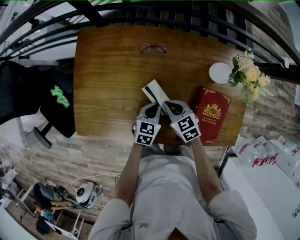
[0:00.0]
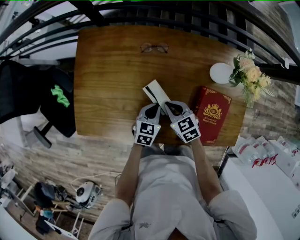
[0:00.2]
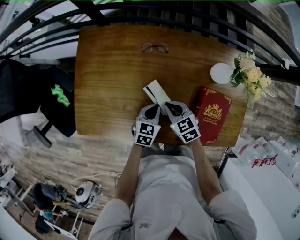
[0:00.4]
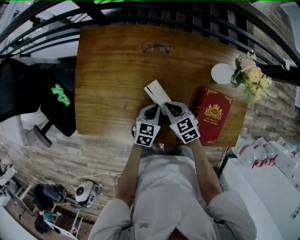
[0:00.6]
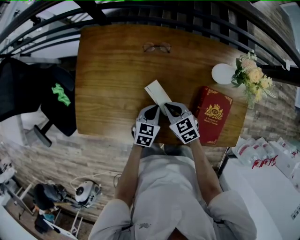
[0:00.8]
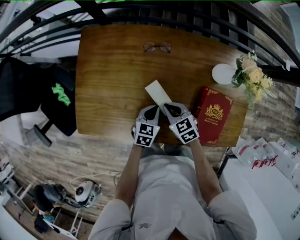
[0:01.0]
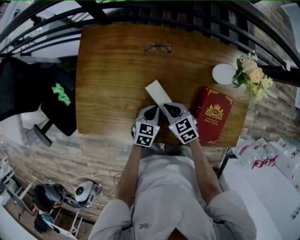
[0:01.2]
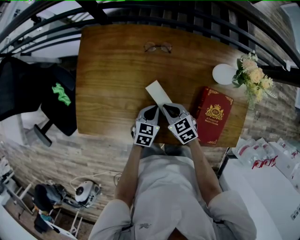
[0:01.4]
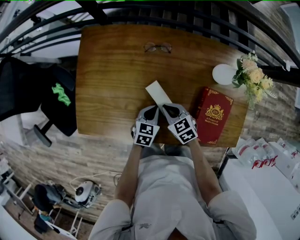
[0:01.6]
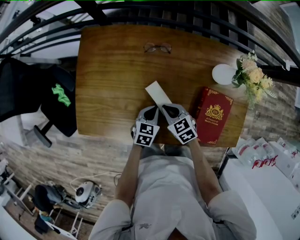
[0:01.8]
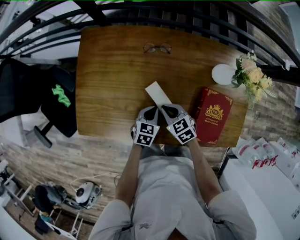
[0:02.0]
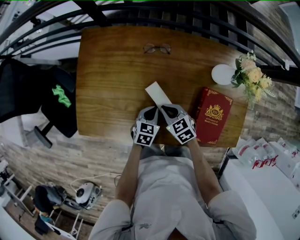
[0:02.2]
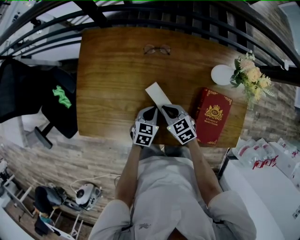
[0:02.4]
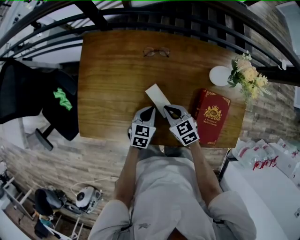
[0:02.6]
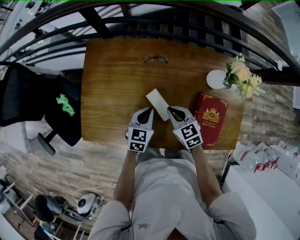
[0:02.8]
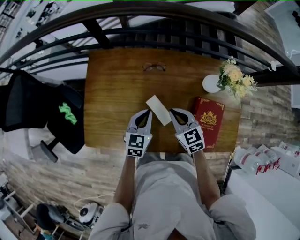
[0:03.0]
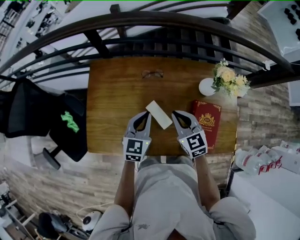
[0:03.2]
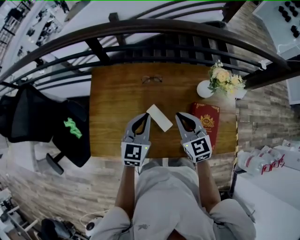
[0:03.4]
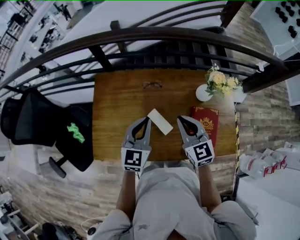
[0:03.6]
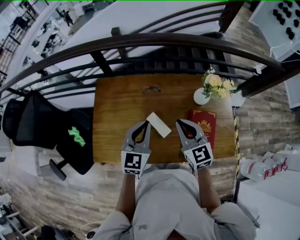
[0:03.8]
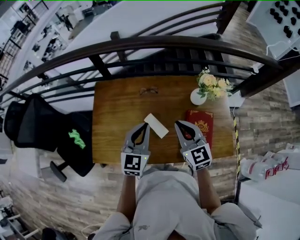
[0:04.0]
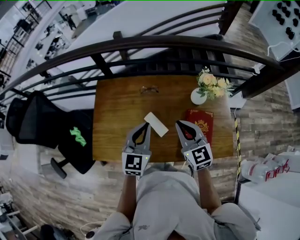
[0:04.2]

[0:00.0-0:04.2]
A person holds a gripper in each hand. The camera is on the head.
0:00.0 to 0:01.4: The grippers make only small movements.
0:01.4 to 0:02.8: Both grippers move upward, roughly 5 cm.
0:02.8 to 0:04.2: The grippers both shift upward by roughly 20 cm. The right gripper changes its angle by about 30 degrees. The left gripper rotates approximately 30 degrees.

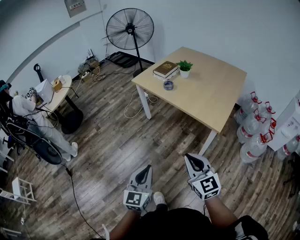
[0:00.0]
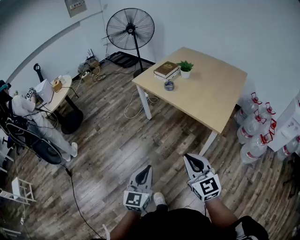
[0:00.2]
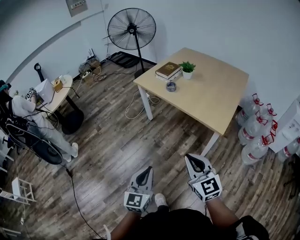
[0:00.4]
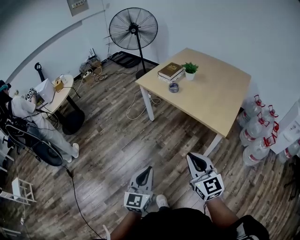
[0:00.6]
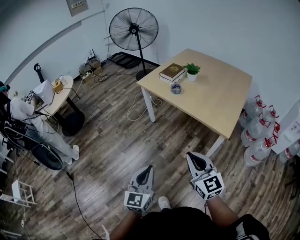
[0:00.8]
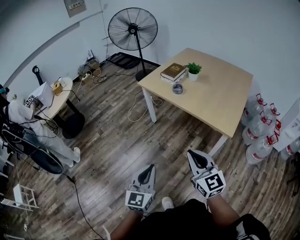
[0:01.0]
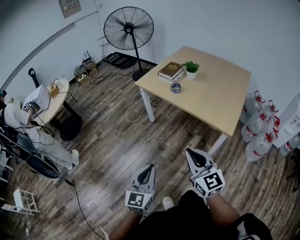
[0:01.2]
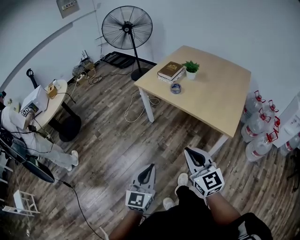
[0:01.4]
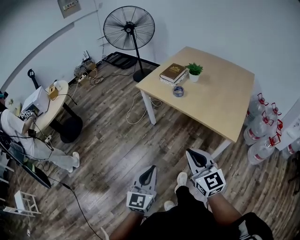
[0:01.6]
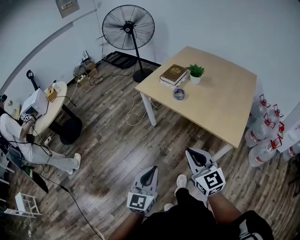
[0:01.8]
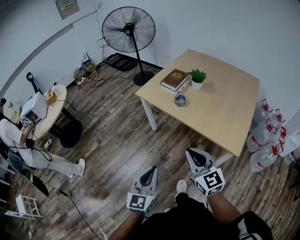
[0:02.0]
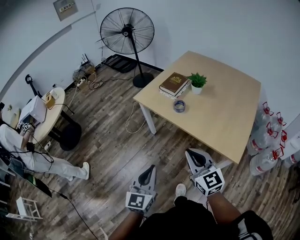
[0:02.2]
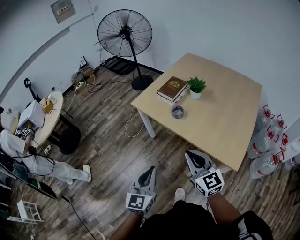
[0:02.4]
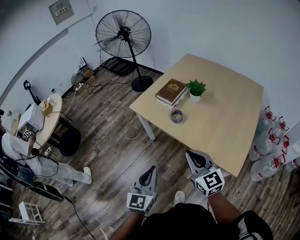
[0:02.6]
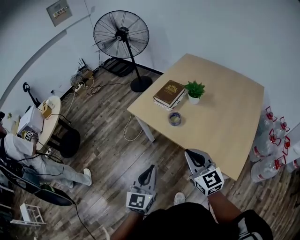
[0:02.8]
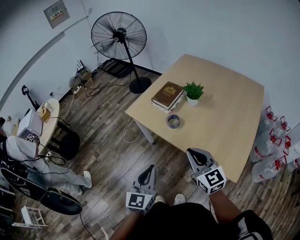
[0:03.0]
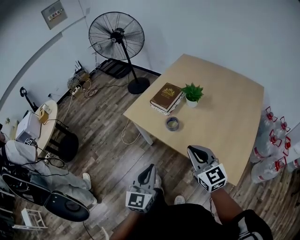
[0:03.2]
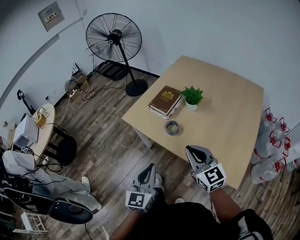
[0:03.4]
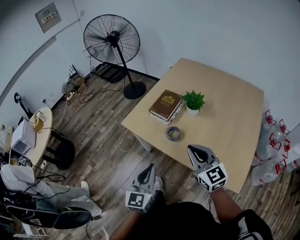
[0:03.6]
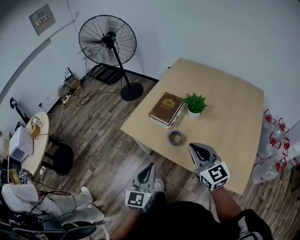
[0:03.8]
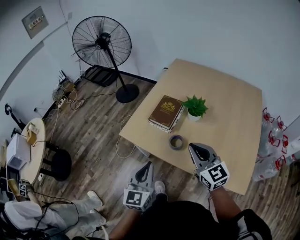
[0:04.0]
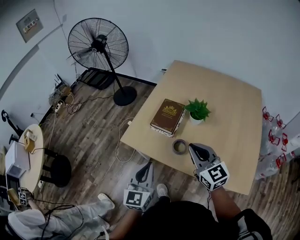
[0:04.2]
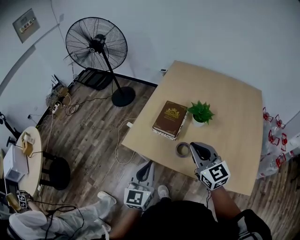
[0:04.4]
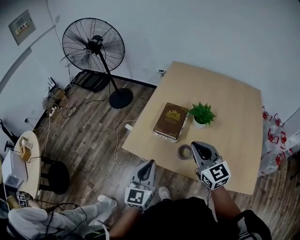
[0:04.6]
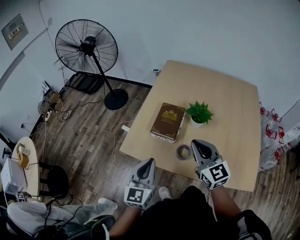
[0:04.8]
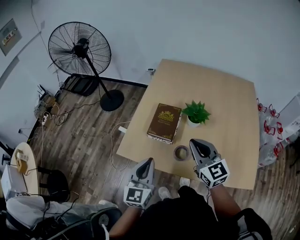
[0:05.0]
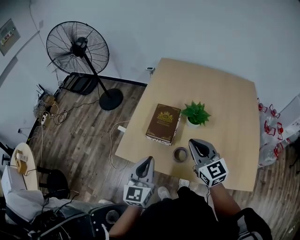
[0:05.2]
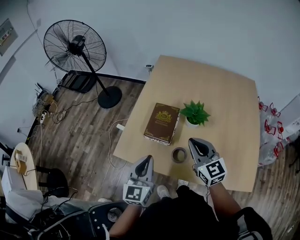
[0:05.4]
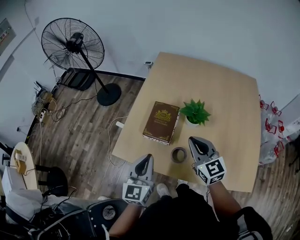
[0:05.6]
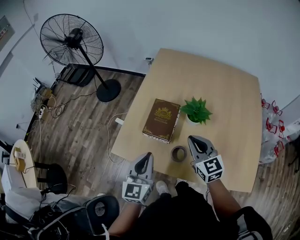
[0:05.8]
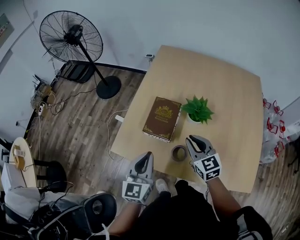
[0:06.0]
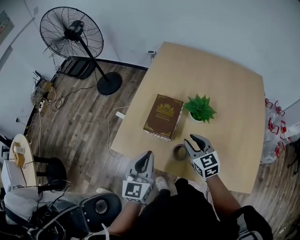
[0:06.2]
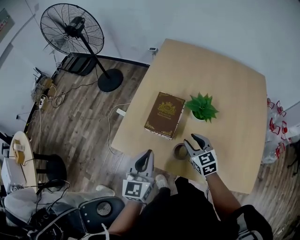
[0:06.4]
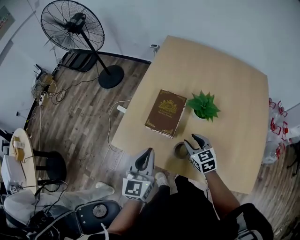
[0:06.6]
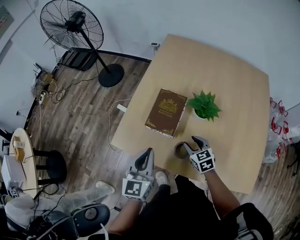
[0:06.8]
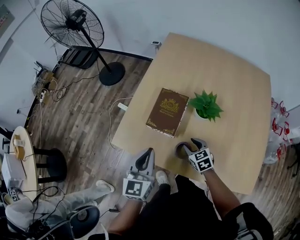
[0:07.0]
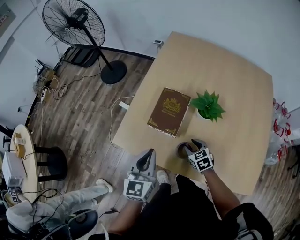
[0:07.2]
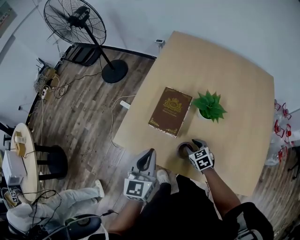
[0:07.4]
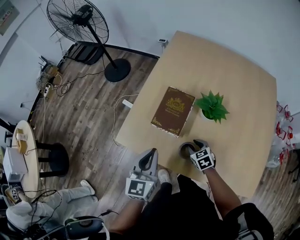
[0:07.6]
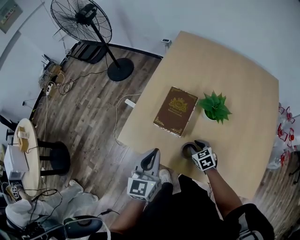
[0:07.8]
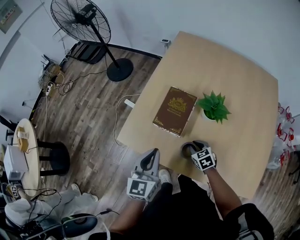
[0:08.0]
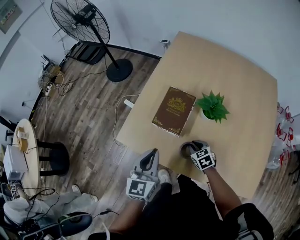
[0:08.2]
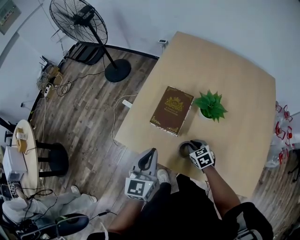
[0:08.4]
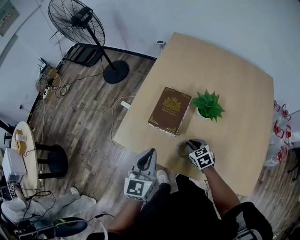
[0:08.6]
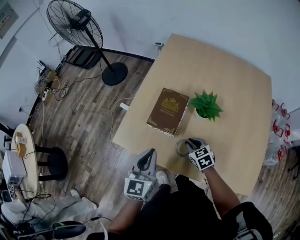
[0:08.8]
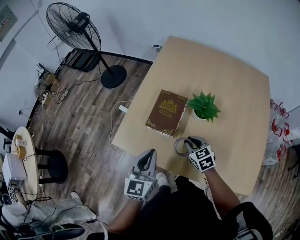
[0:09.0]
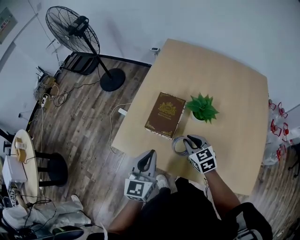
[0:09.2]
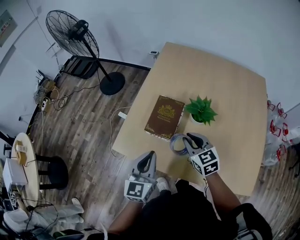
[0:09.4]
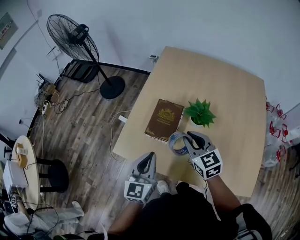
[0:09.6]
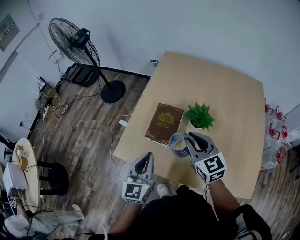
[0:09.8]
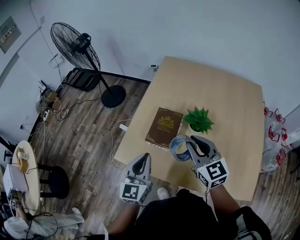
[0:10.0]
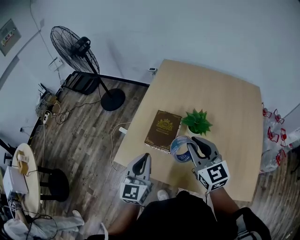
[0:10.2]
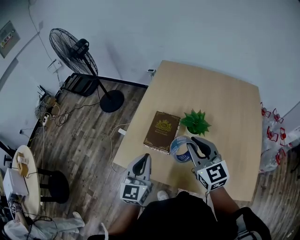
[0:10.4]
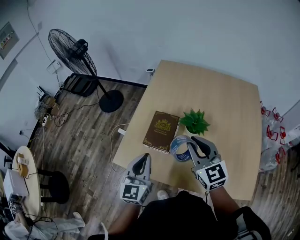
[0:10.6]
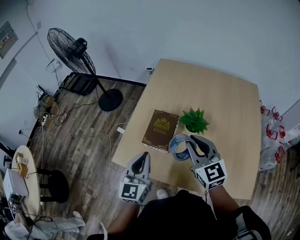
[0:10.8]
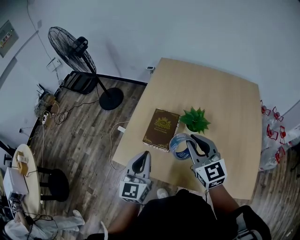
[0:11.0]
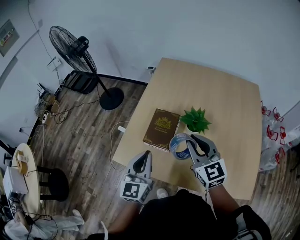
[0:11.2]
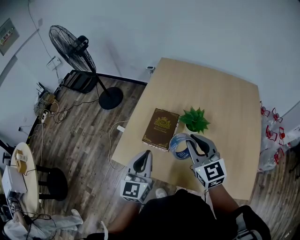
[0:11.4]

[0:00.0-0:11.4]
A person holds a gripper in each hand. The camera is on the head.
0:00.0 to 0:01.4: The grippers both shift forward and to the left by roughly 15 cm.
0:01.4 to 0:02.8: The grippers both shift forward by about 30 cm.
0:02.8 to 0:04.2: Both grippers move forward, some 25 cm.
0:04.2 to 0:05.6: The two grippers go roughly 15 cm forward.
0:05.6 to 0:07.2: The right gripper moves downward, approximately 25 cm, tips its fingers downward by some 40 degrees, and opens up.
0:07.2 to 0:08.6: The right gripper closes up.
0:08.6 to 0:10.0: The right gripper moves upward, about 30 cm, and points its fingers about 40 degrees further upward. The left gripper shifts approximately 5 cm upward.
0:10.0 to 0:11.4: The grippers make only small movements.

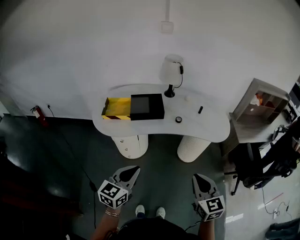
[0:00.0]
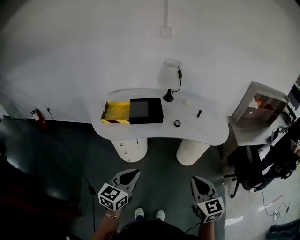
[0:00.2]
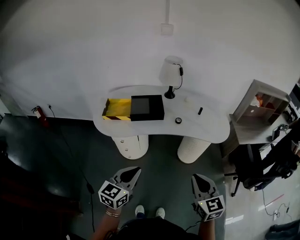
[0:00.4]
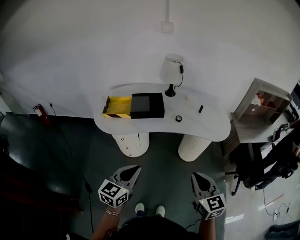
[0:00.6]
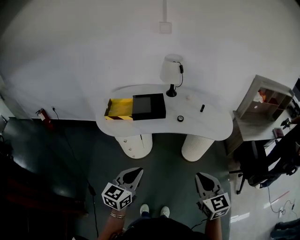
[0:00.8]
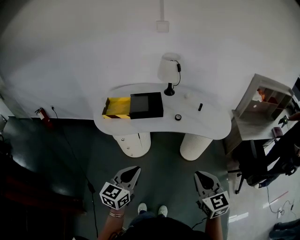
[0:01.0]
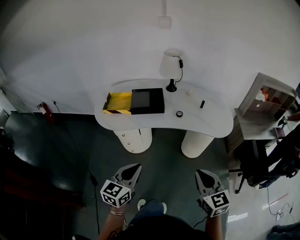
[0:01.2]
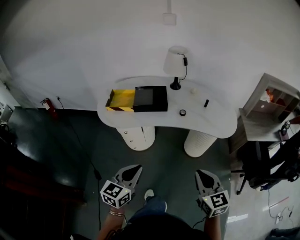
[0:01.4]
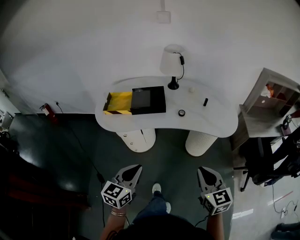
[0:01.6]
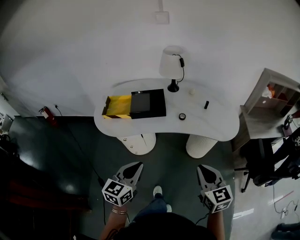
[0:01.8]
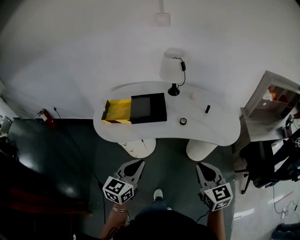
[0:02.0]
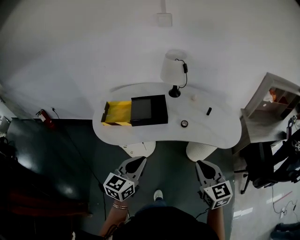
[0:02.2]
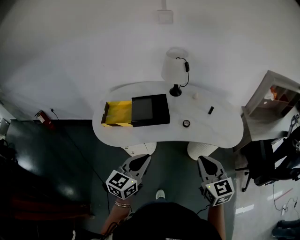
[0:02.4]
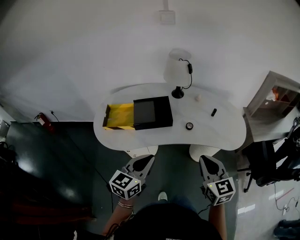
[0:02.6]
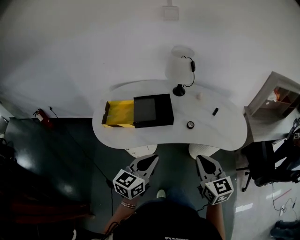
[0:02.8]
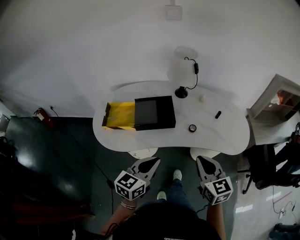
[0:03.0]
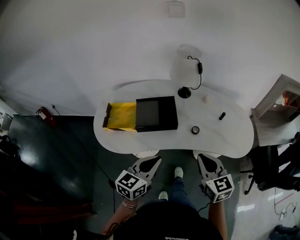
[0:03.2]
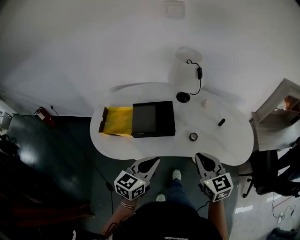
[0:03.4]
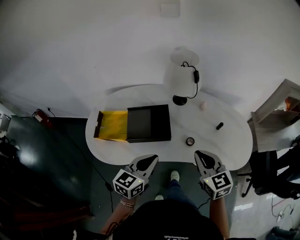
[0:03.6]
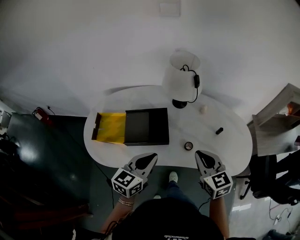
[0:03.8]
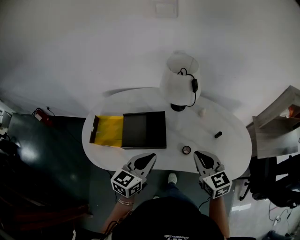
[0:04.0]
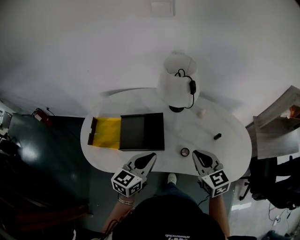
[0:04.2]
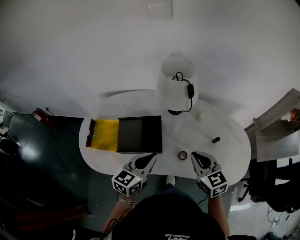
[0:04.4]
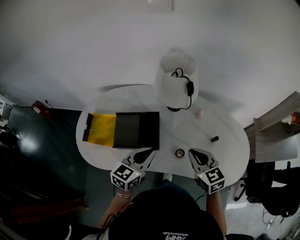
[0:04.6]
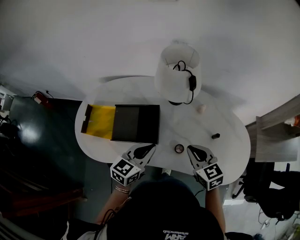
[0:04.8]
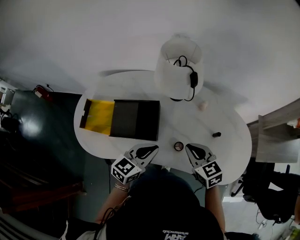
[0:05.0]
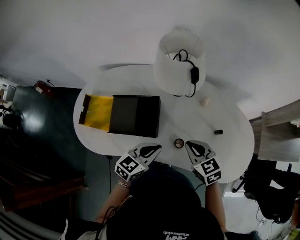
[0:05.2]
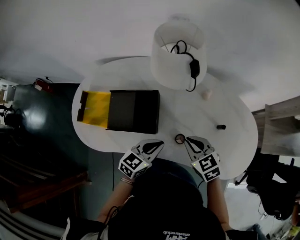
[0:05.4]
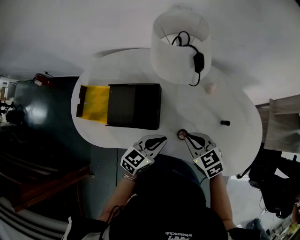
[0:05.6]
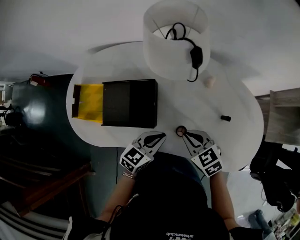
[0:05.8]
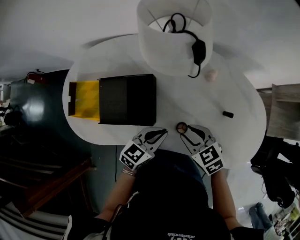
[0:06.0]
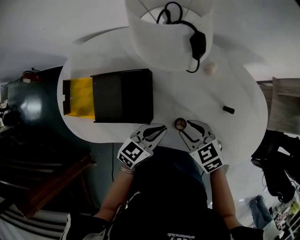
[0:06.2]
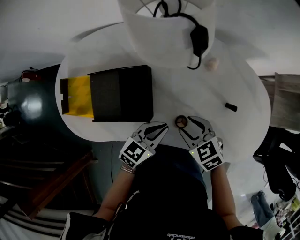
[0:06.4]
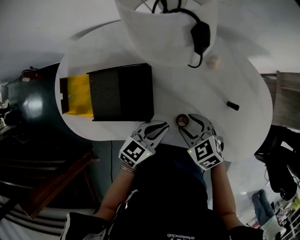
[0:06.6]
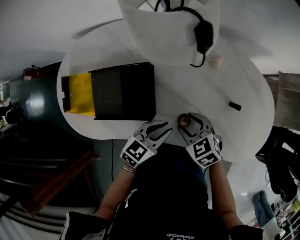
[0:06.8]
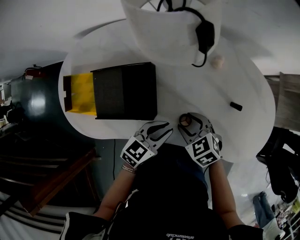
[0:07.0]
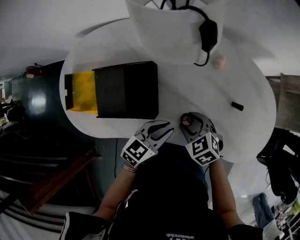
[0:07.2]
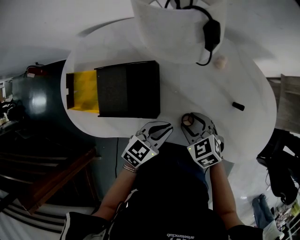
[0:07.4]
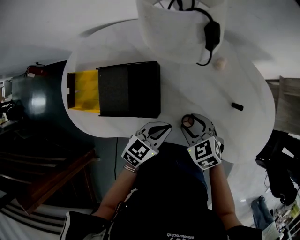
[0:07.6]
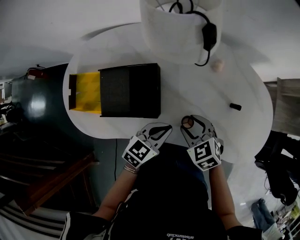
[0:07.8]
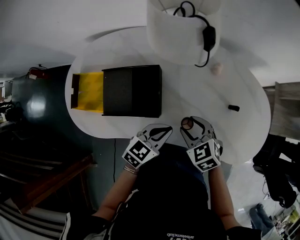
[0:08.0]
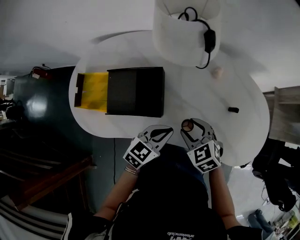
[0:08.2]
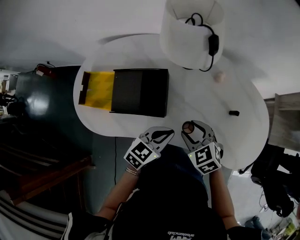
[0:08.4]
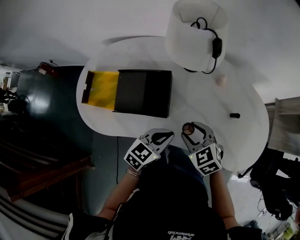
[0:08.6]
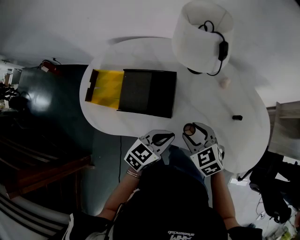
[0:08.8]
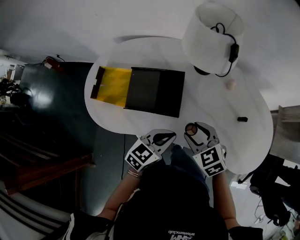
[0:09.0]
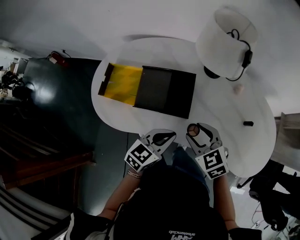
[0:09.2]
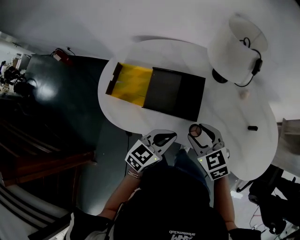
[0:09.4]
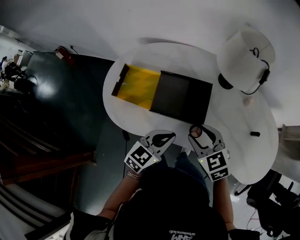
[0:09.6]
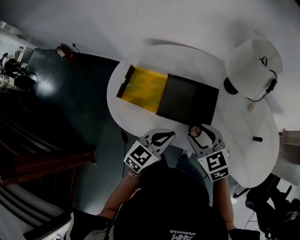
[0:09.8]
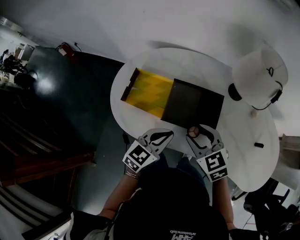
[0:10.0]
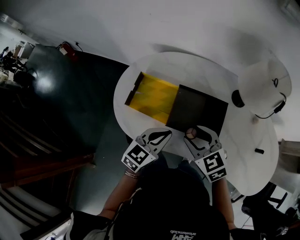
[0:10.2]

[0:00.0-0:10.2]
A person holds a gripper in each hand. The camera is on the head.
0:00.0 to 0:01.4: The left gripper shifts by about 5 cm.
0:01.4 to 0:03.0: The two grippers go about 20 cm forward.
0:03.0 to 0:04.4: Both grippers travel together forward, about 25 cm.
0:04.4 to 0:05.8: The right gripper travels downward by approximately 15 cm, and rotates some 30 degrees. The left gripper moves downward and to the right, some 15 cm.
0:05.8 to 0:07.2: The right gripper is displaced downward by approximately 5 cm, and opens.
0:07.2 to 0:08.8: The left gripper is displaced upward by about 5 cm; the right gripper moves upward, about 10 cm.
0:08.8 to 0:10.2: The grippers both shift to the left by some 25 cm.
